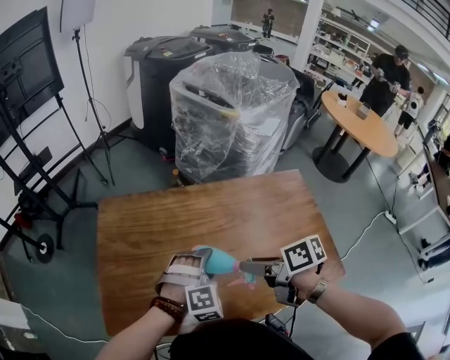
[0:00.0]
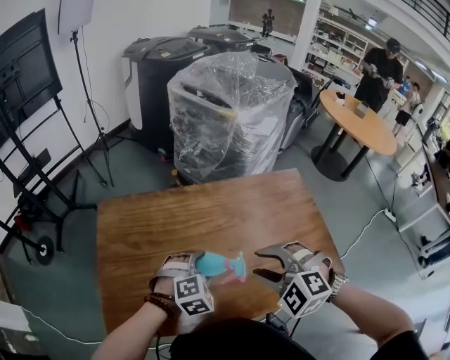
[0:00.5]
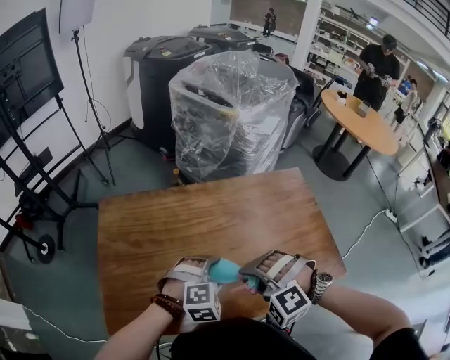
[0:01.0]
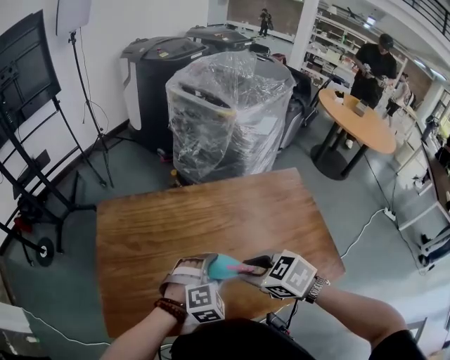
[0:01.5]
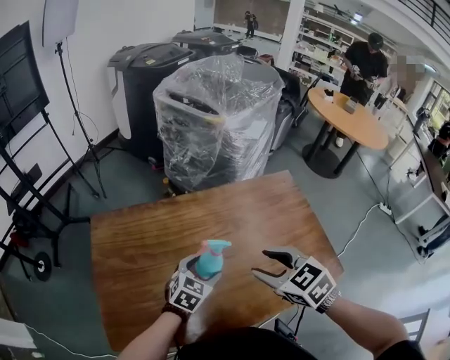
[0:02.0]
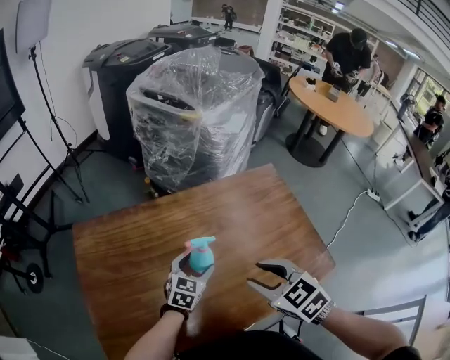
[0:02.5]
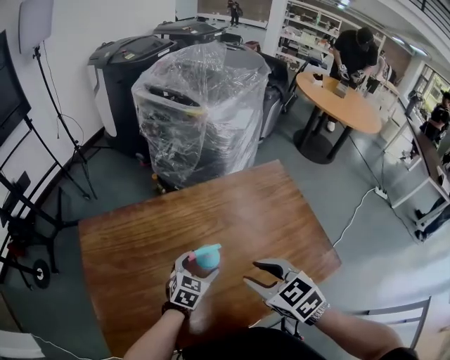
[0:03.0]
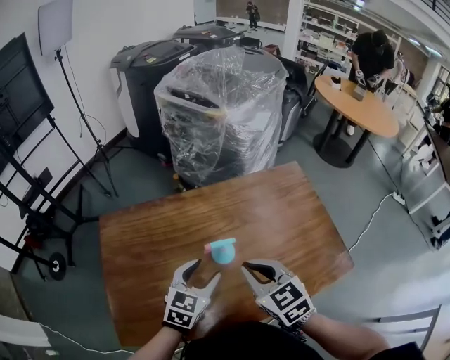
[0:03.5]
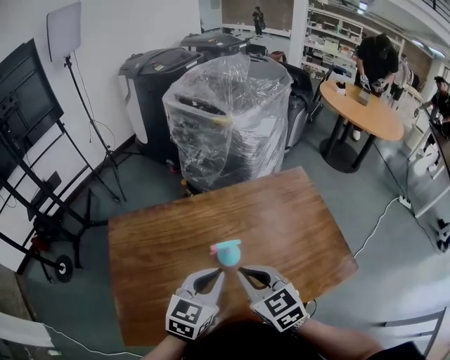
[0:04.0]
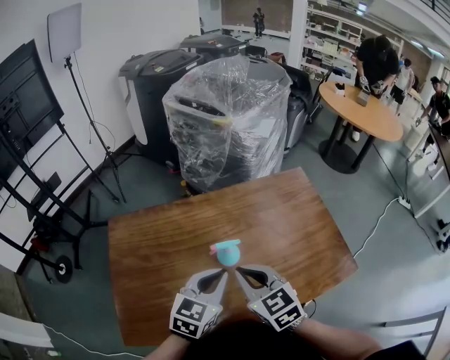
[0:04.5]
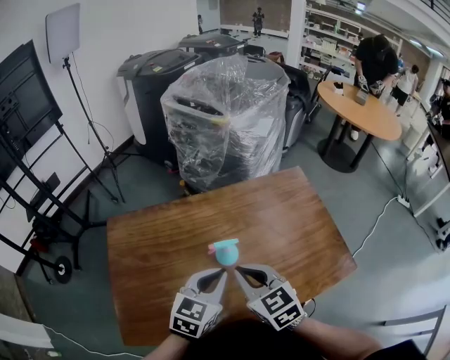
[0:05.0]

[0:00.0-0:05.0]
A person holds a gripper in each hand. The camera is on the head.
0:00.0 to 0:02.5: The left gripper ends up some 10 cm from where it was, and rolls counterclockwise, seen from behind, by about 50 degrees. Meanwhile the right gripper changes place by some 5 cm, and twists roughly 50 degrees counterclockwise, seen from behind.
0:02.5 to 0:05.0: The right gripper goes some 10 cm to the left, and closes, while the left gripper travels upward and backward by about 20 cm, and closes up.

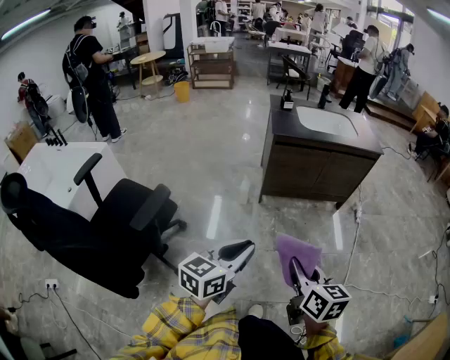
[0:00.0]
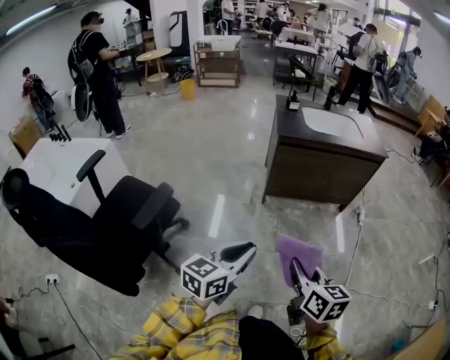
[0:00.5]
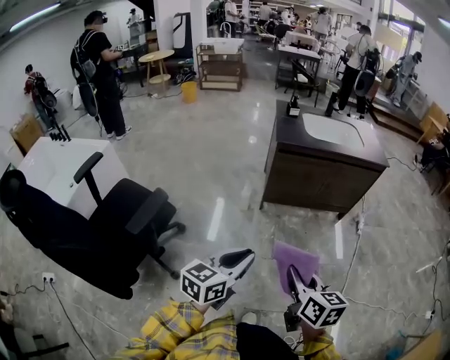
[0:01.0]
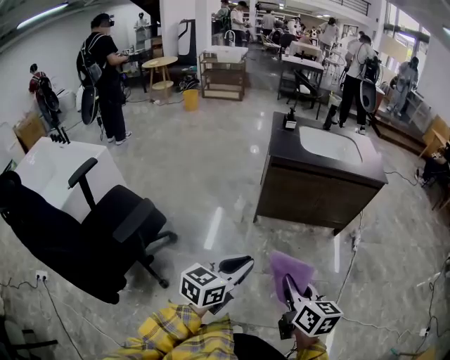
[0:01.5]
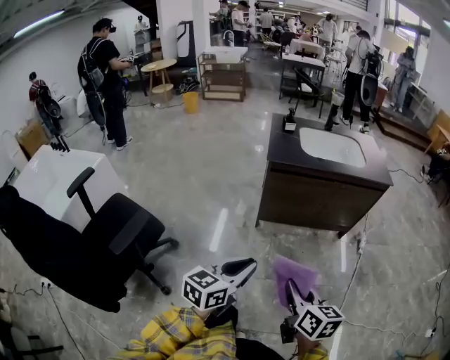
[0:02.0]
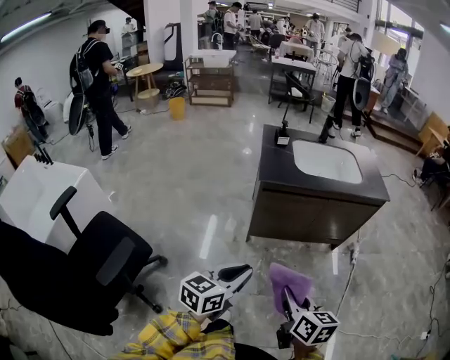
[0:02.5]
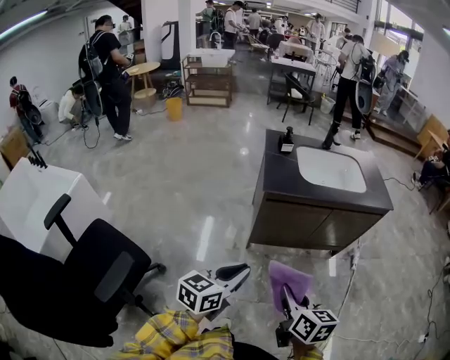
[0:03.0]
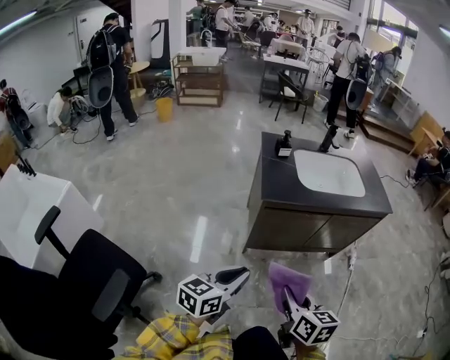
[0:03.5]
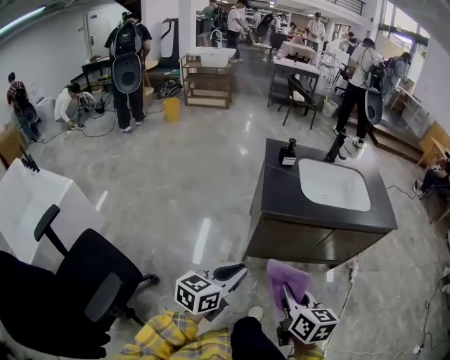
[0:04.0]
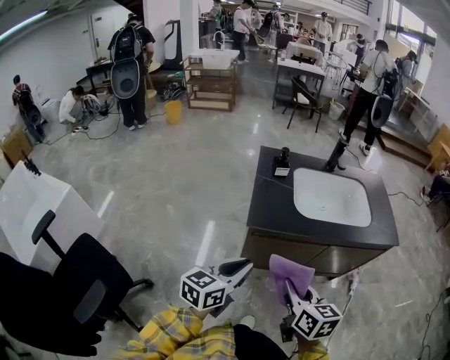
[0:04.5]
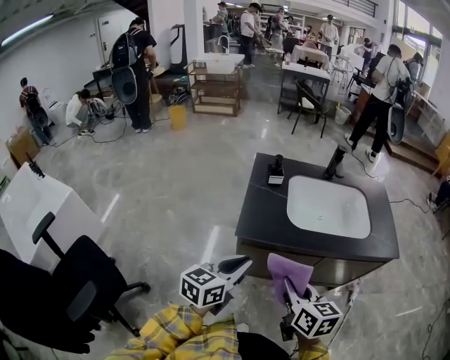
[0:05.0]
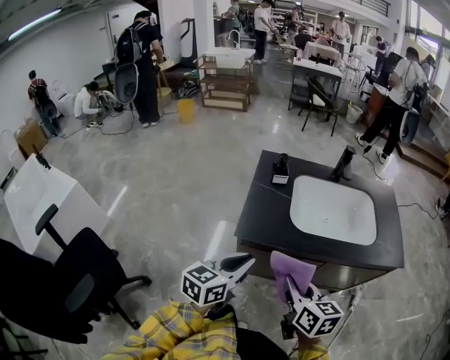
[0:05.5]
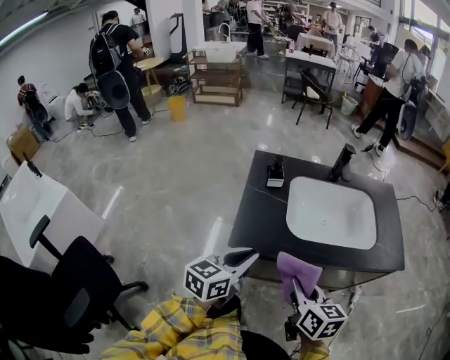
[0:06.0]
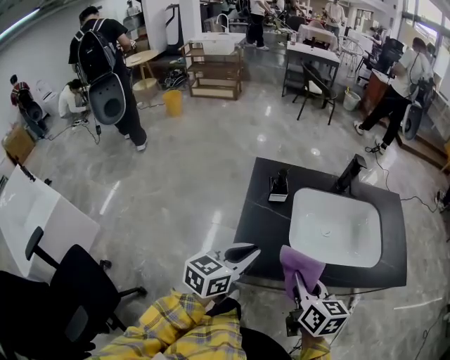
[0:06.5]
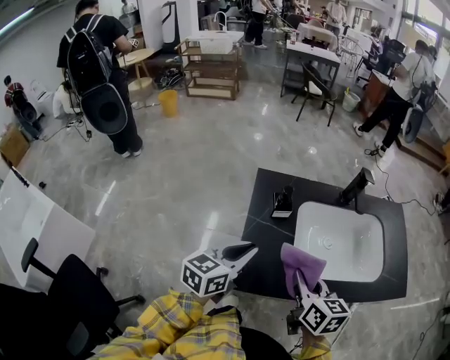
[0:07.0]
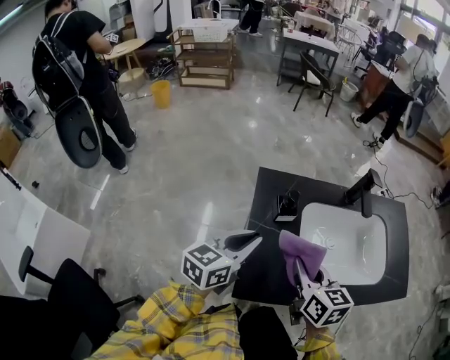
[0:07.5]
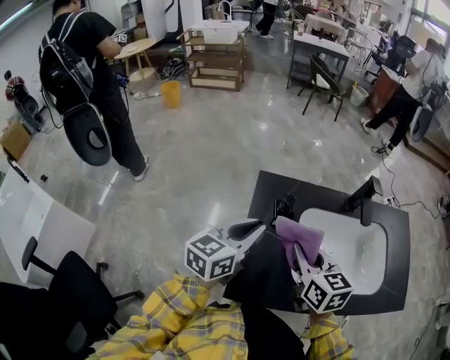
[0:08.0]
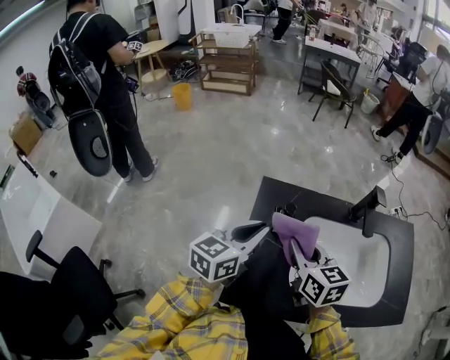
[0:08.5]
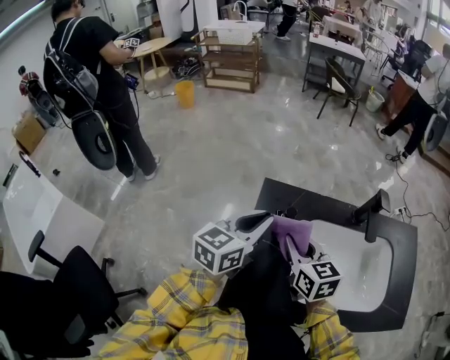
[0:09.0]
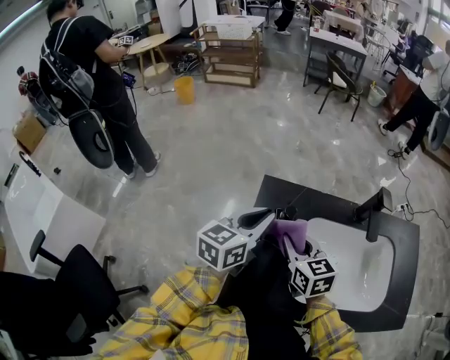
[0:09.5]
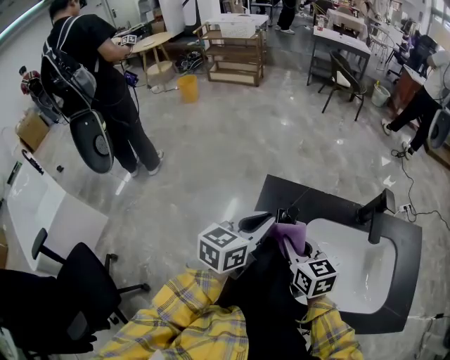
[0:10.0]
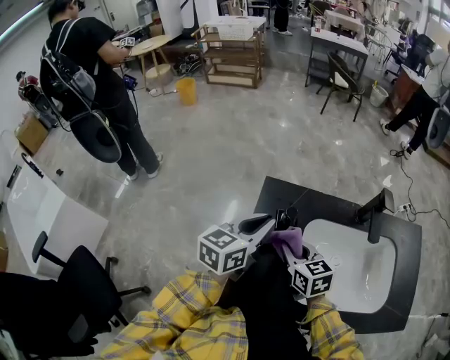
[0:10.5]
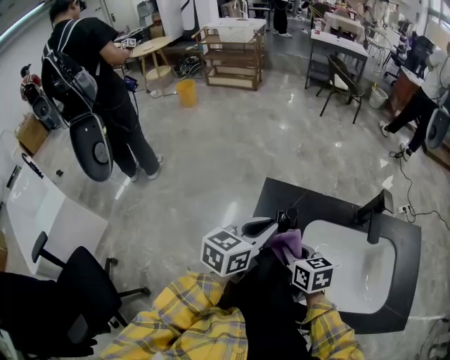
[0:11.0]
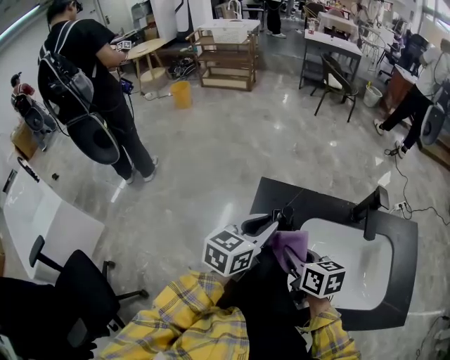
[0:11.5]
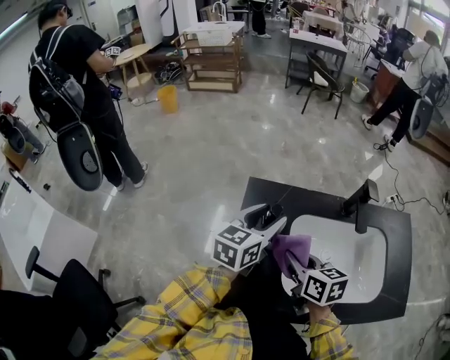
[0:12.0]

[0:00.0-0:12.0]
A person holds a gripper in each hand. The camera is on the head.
0:00.0 to 0:02.0: Both grippers travel together forward and to the right, roughly 20 cm.
0:02.0 to 0:04.0: The grippers both shift forward by some 30 cm.
0:04.0 to 0:06.0: The two grippers go about 30 cm forward and to the right.
0:06.0 to 0:08.0: Both grippers move forward, approximately 30 cm.
0:08.0 to 0:10.0: The right gripper is displaced forward and downward by approximately 10 cm. The left gripper heads forward, covering some 5 cm.
0:10.0 to 0:12.0: The left gripper goes some 5 cm to the right, and opens. The right gripper travels backward by some 5 cm.

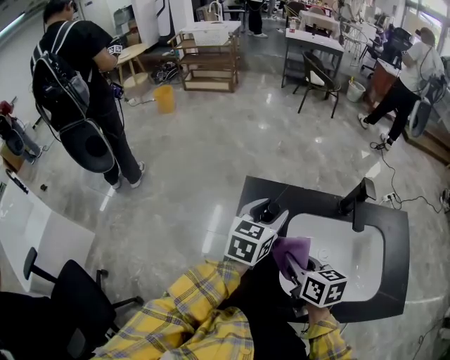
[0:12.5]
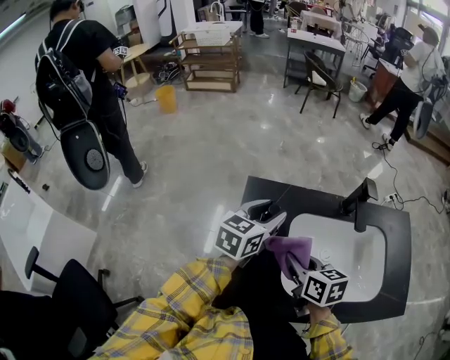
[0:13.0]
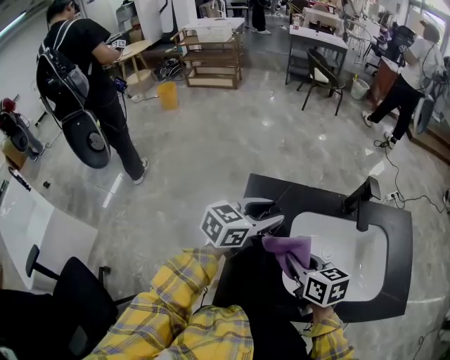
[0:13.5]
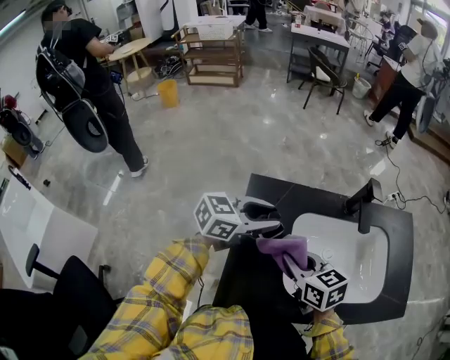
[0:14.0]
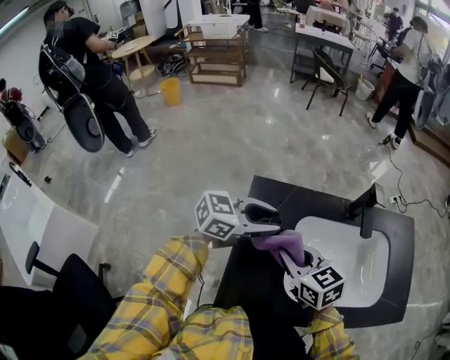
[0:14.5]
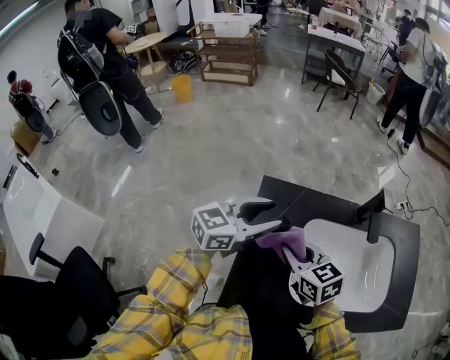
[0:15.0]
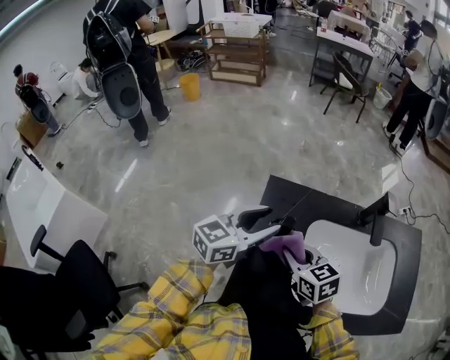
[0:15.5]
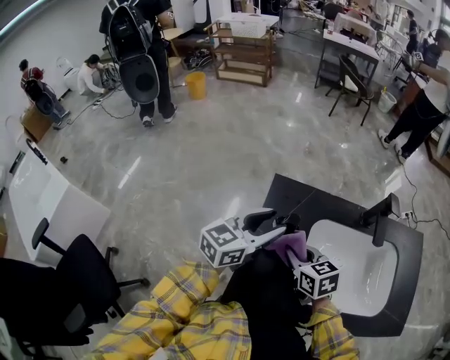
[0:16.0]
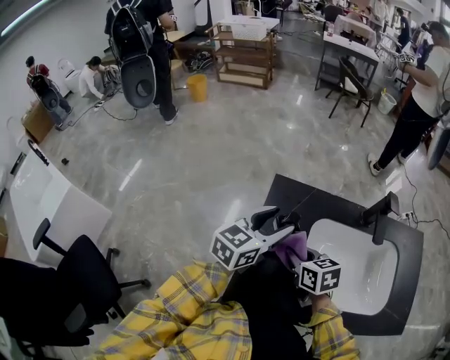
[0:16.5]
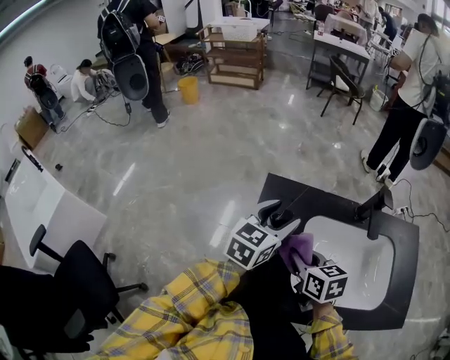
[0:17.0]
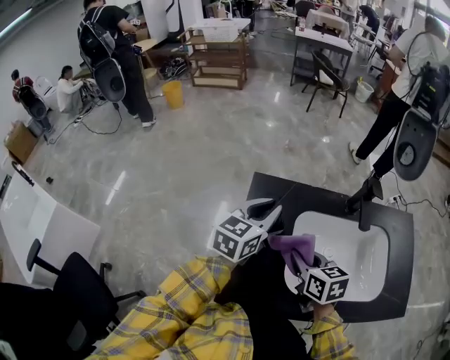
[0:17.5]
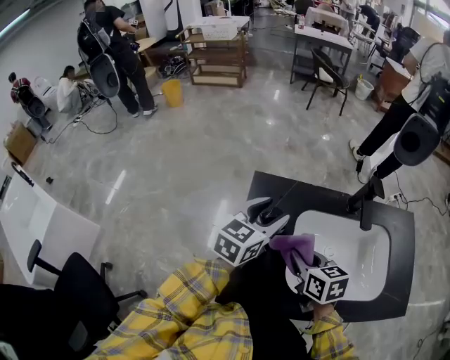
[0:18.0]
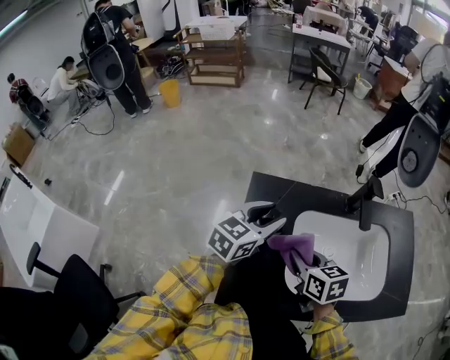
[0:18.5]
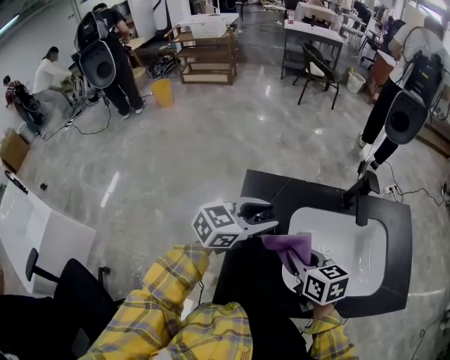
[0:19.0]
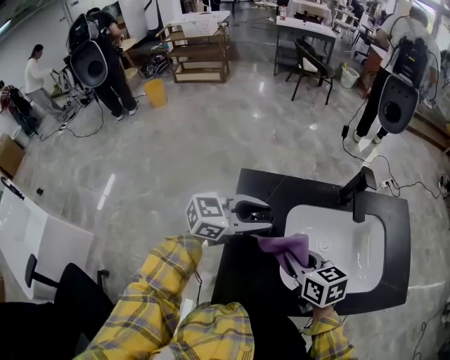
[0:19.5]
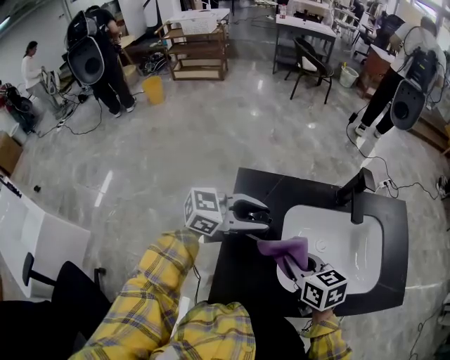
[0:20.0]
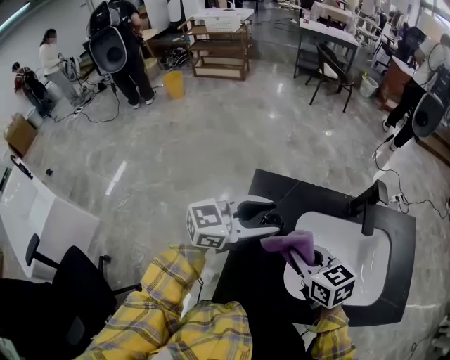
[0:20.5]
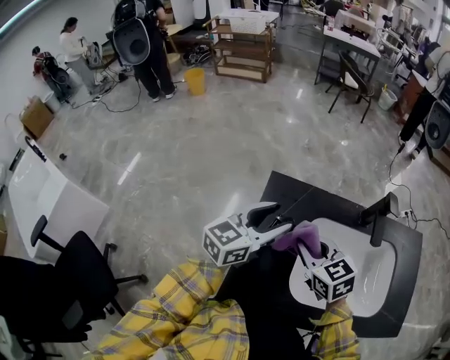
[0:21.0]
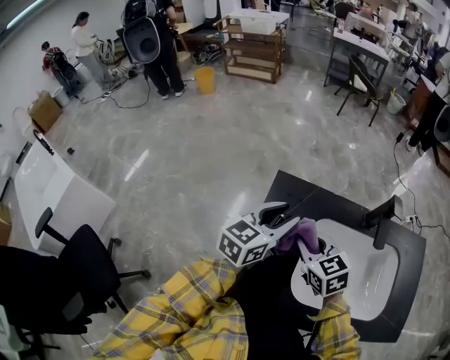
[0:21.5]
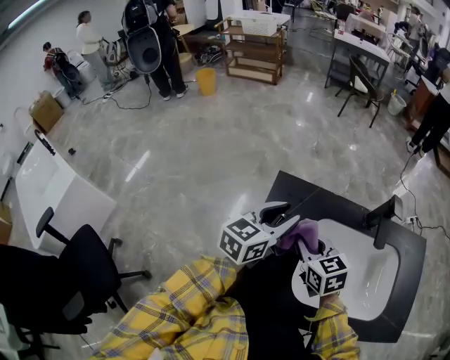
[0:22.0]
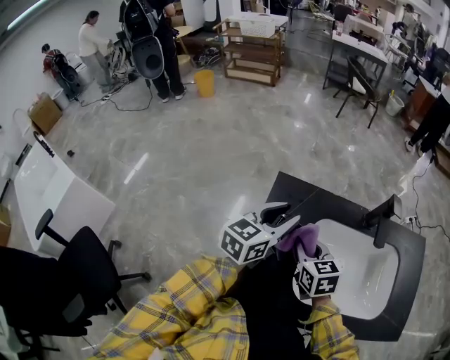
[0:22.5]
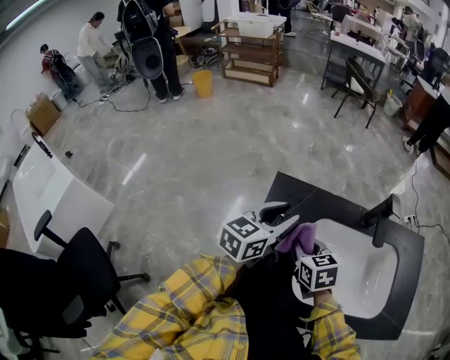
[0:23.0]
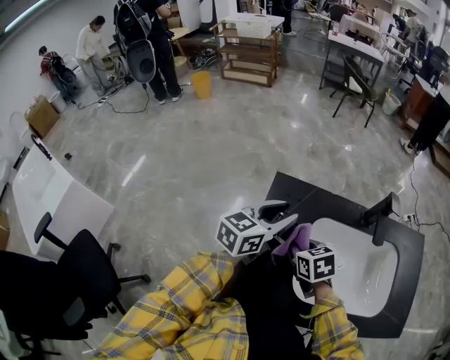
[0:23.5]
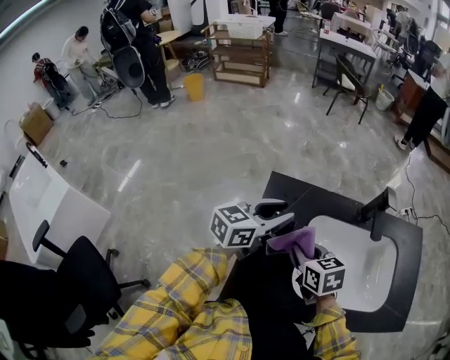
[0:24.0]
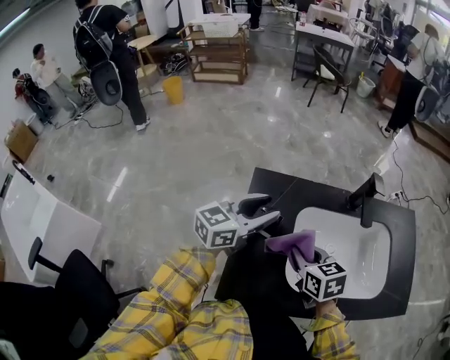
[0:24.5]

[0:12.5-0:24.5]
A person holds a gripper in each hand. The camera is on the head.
0:12.5 to 0:14.5: The right gripper shifts by some 5 cm, and turns by approximately 20 degrees. Meanwhile the left gripper rotates about 50 degrees.
0:14.5 to 0:16.5: The right gripper travels downward by some 5 cm; the left gripper changes its angle by roughly 40 degrees.
0:16.5 to 0:18.5: The left gripper closes, then opens again, while the right gripper is displaced to the right by some 5 cm.
0:18.5 to 0:20.5: The left gripper swivels roughly 30 degrees.
0:20.5 to 0:22.5: The left gripper turns by about 30 degrees. Meanwhile the right gripper changes place by some 5 cm.
0:22.5 to 0:24.5: The right gripper ends up approximately 5 cm from where it was.
